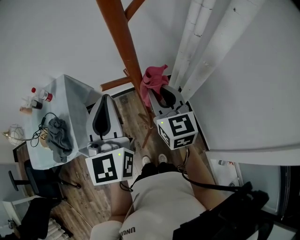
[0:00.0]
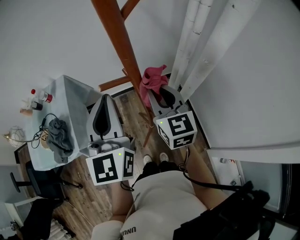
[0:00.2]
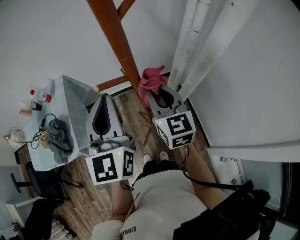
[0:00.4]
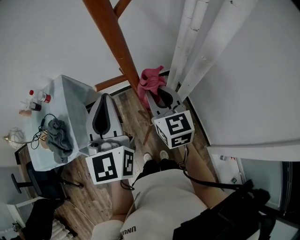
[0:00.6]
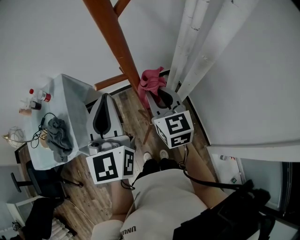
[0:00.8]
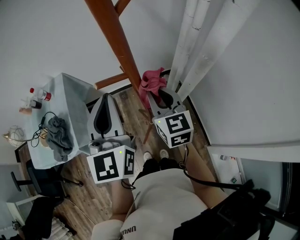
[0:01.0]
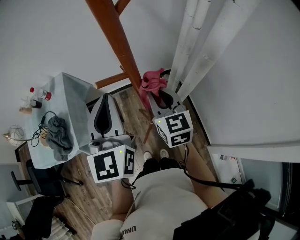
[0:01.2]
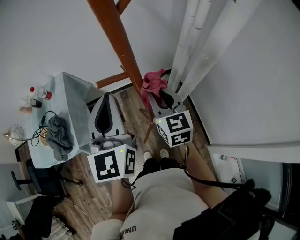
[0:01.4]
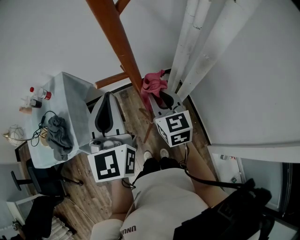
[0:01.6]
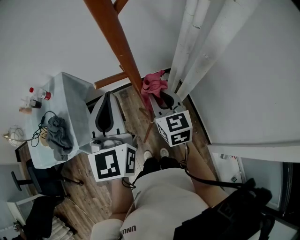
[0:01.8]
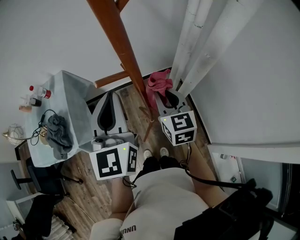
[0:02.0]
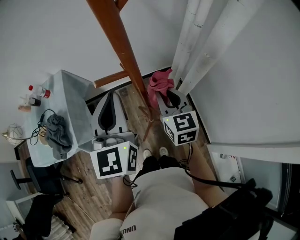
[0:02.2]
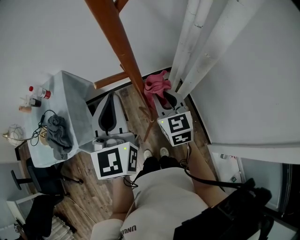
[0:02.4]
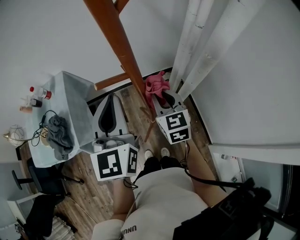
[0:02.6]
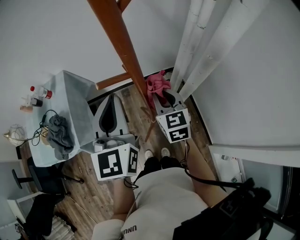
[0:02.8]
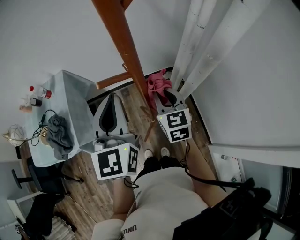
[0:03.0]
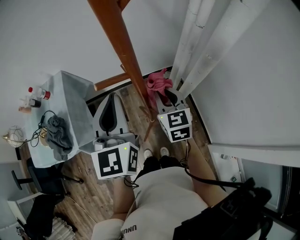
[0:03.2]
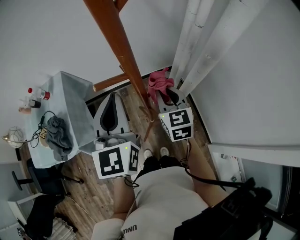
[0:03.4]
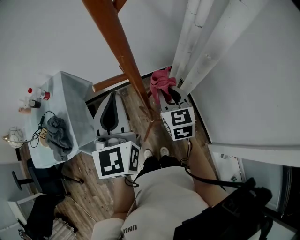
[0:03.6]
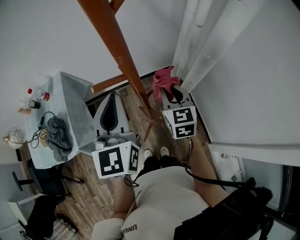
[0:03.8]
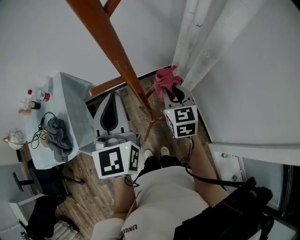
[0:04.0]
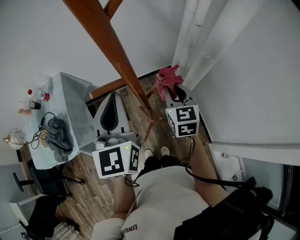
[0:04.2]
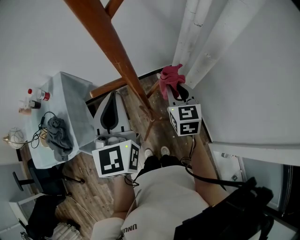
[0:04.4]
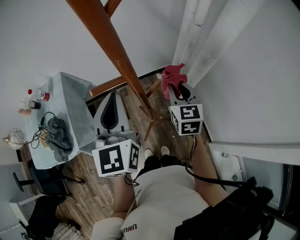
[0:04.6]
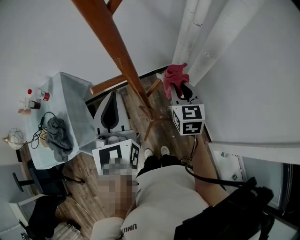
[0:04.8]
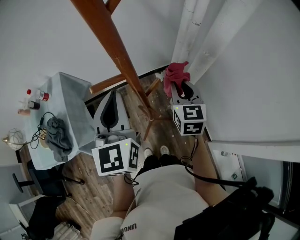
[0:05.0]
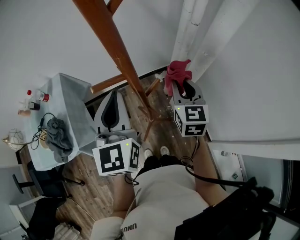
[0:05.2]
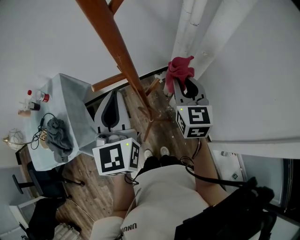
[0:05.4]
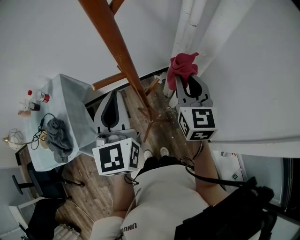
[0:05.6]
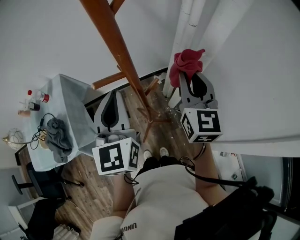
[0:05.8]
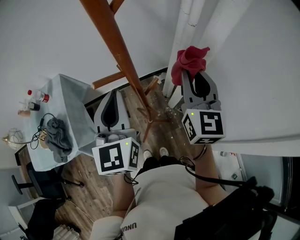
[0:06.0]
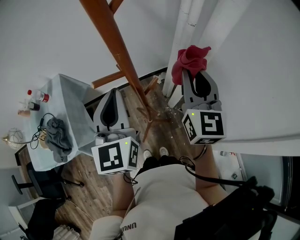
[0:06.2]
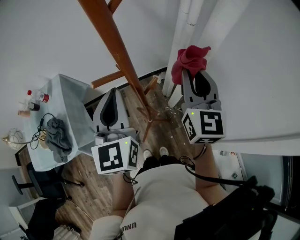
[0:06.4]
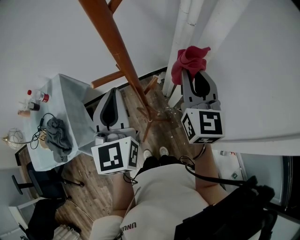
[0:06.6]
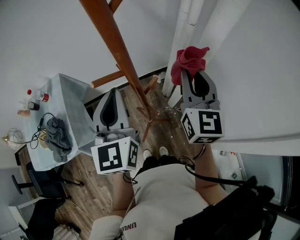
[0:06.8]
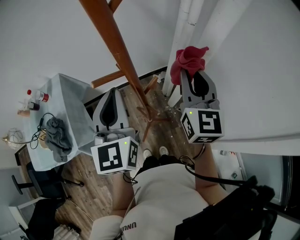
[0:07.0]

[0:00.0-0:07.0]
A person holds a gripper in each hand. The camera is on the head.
0:00.0 to 0:01.4: The right gripper goes approximately 5 cm downward.
0:01.4 to 0:02.8: The grippers make only small movements.
0:02.8 to 0:04.2: The right gripper travels to the right by approximately 5 cm.
0:04.2 to 0:05.6: The right gripper goes some 10 cm upward.
0:05.6 to 0:07.0: The grippers make only small movements.

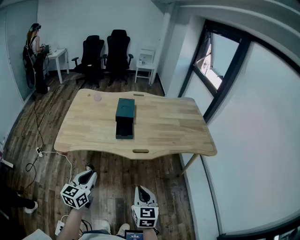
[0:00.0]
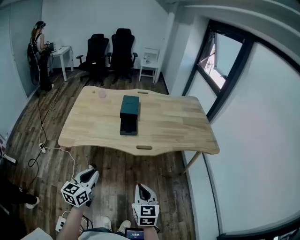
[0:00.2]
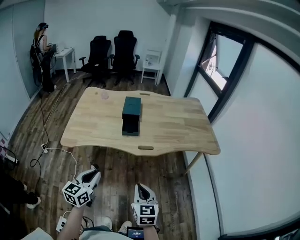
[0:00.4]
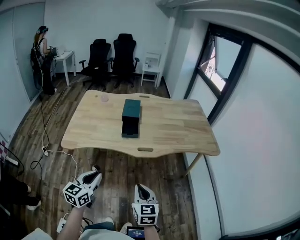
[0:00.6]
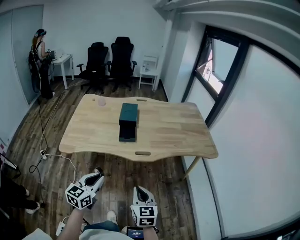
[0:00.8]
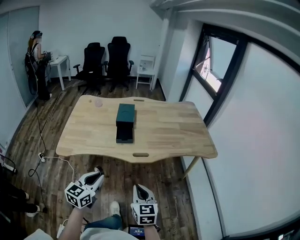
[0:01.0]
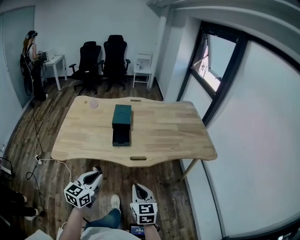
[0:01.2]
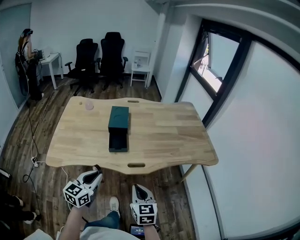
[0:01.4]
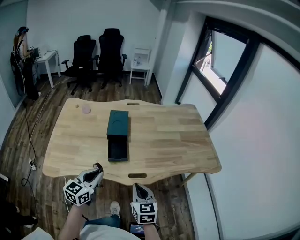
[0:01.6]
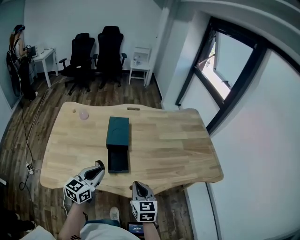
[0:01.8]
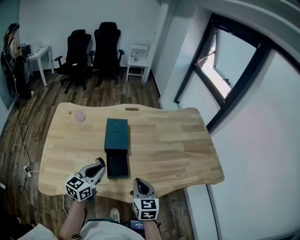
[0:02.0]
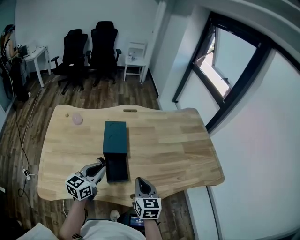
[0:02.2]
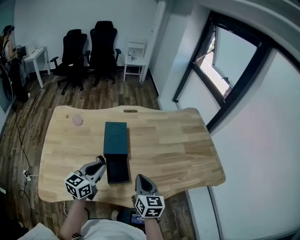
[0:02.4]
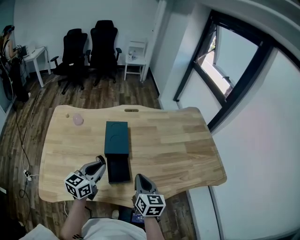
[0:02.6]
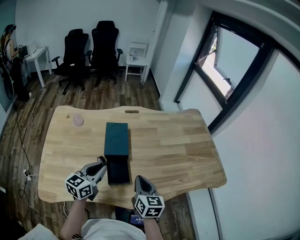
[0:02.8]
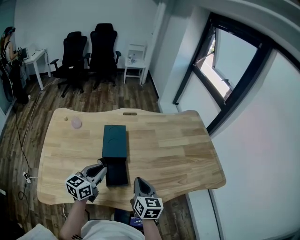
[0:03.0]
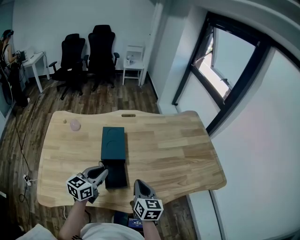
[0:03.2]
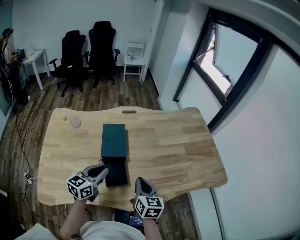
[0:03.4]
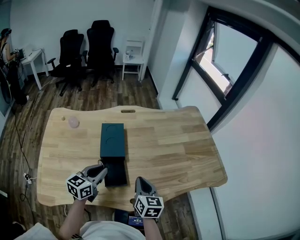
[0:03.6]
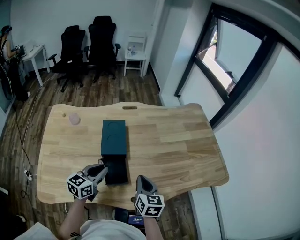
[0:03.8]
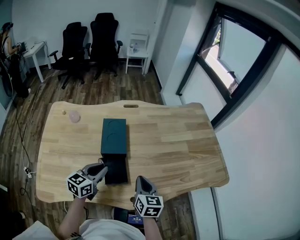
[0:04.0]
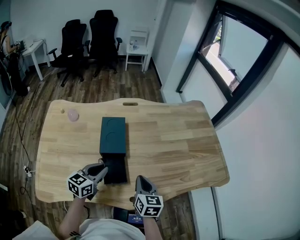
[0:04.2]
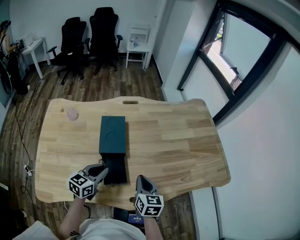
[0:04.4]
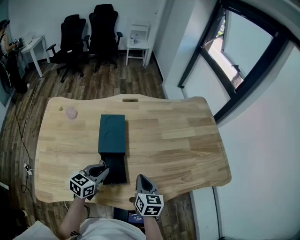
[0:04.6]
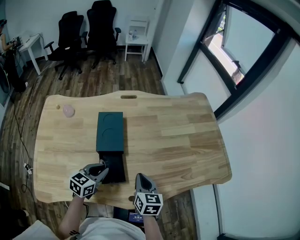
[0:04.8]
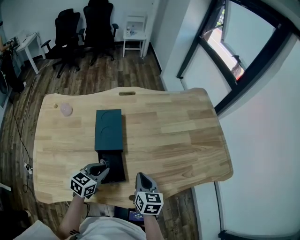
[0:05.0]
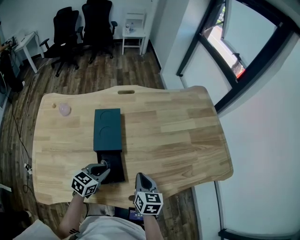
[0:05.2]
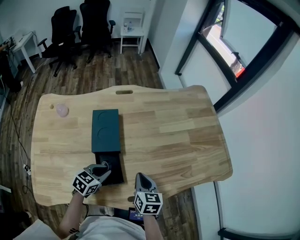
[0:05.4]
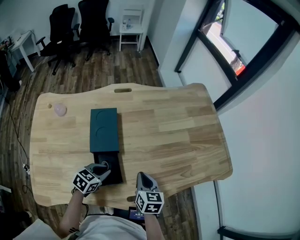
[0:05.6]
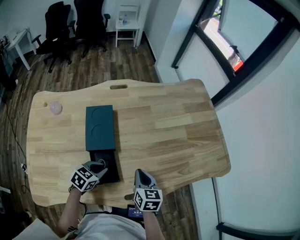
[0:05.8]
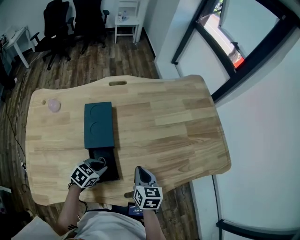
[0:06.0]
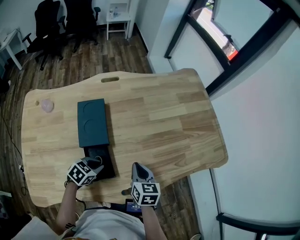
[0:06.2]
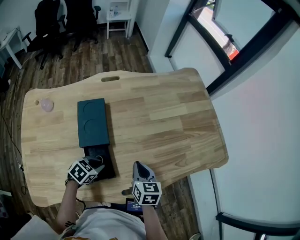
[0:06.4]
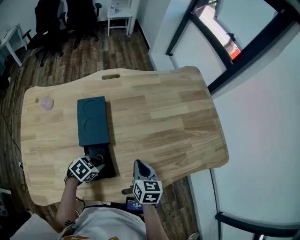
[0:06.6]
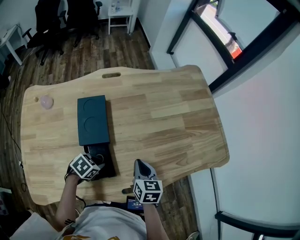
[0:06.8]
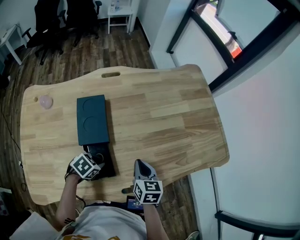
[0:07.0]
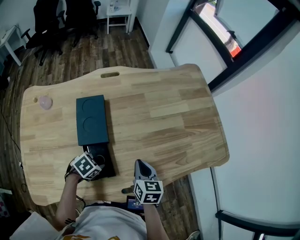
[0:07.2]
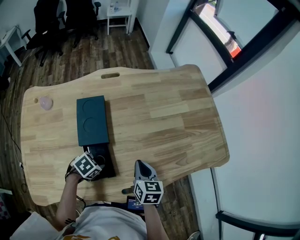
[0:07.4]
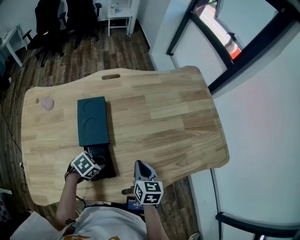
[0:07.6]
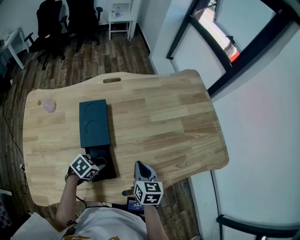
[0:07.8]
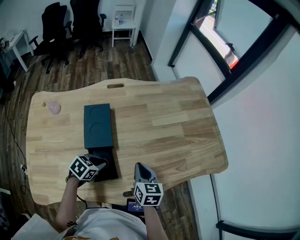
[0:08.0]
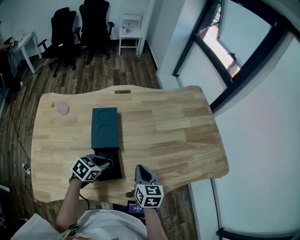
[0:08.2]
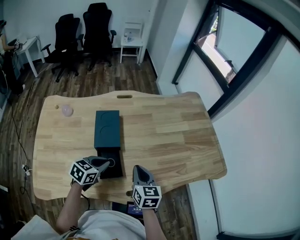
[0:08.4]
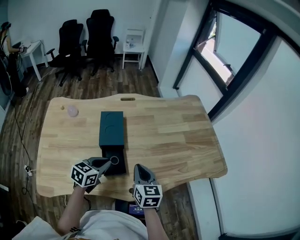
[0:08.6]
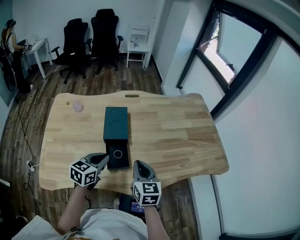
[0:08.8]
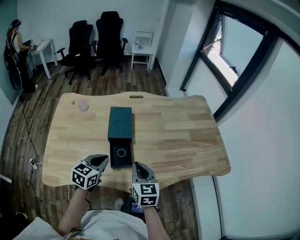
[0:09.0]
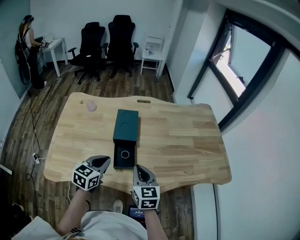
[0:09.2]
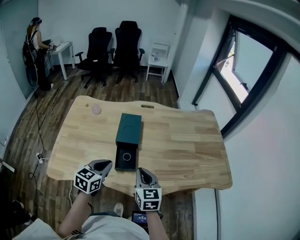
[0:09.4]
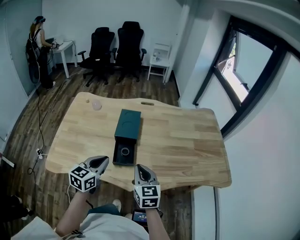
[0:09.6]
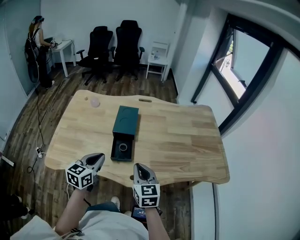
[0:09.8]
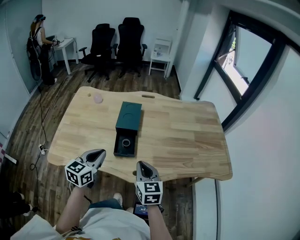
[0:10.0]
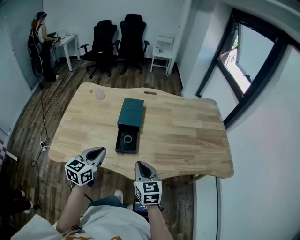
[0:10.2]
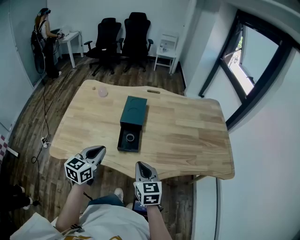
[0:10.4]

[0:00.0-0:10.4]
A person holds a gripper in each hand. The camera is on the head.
0:00.0 to 0:01.4: Both grippers travel together forward, some 10 cm.
0:01.4 to 0:03.0: Both grippers move forward, roughly 30 cm.
0:03.0 to 0:04.4: The two grippers go approximately 5 cm downward.
0:04.4 to 0:06.0: The right gripper moves downward, about 5 cm, while the left gripper goes approximately 10 cm downward, and rotates about 40 degrees.
0:06.0 to 0:07.4: The left gripper turns by approximately 20 degrees.
0:07.4 to 0:09.0: The left gripper heads upward, covering roughly 20 cm, and tilts its fingers some 40 degrees upward. Meanwhile the right gripper ends up roughly 20 cm from where it was, and changes its angle by approximately 20 degrees.
0:09.0 to 0:10.4: Both grippers travel together backward, approximately 10 cm.

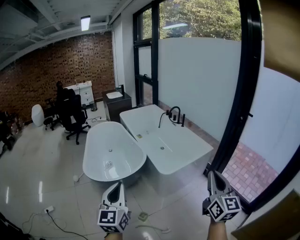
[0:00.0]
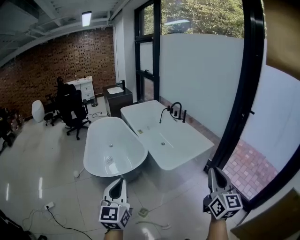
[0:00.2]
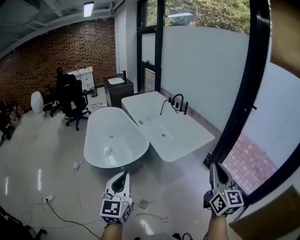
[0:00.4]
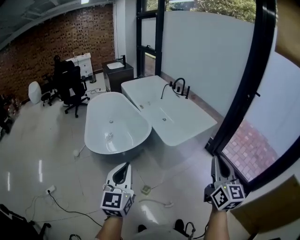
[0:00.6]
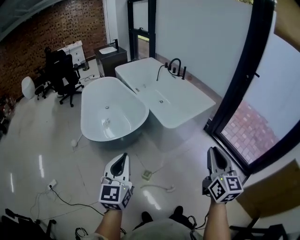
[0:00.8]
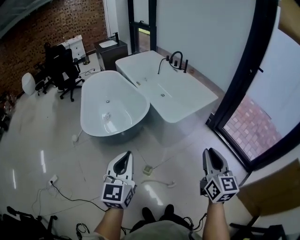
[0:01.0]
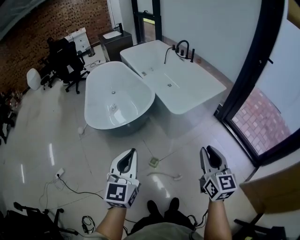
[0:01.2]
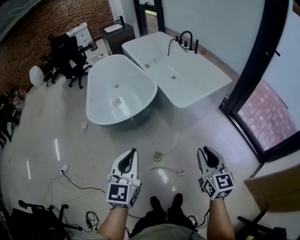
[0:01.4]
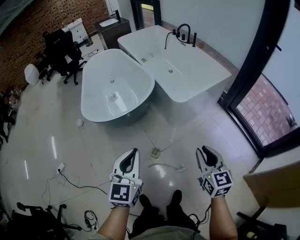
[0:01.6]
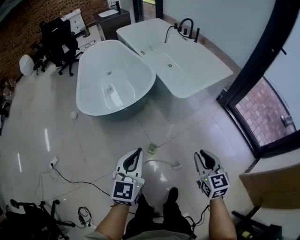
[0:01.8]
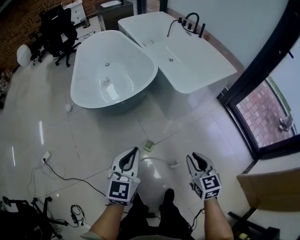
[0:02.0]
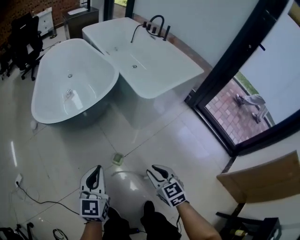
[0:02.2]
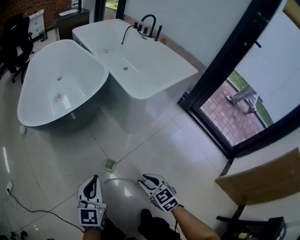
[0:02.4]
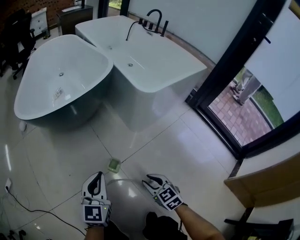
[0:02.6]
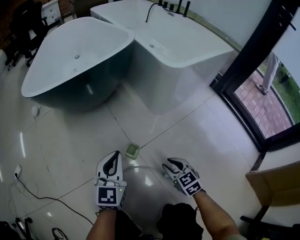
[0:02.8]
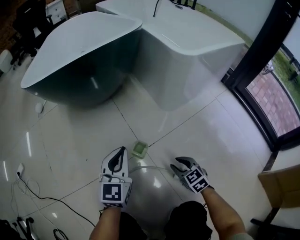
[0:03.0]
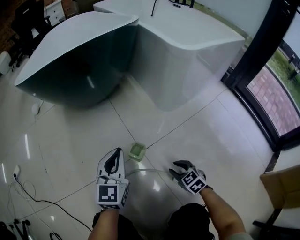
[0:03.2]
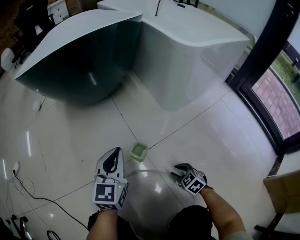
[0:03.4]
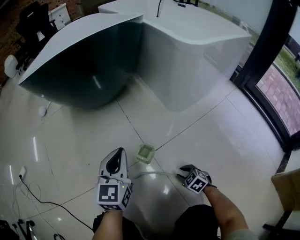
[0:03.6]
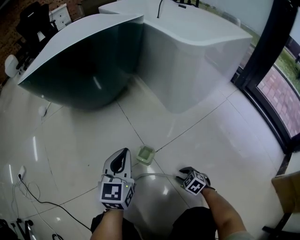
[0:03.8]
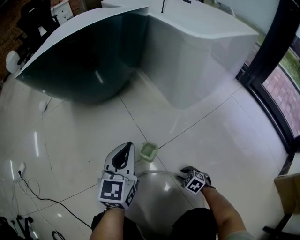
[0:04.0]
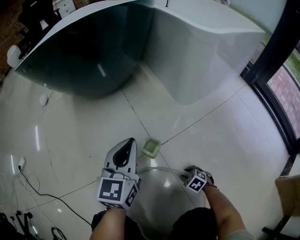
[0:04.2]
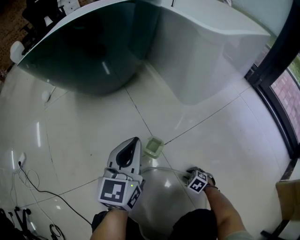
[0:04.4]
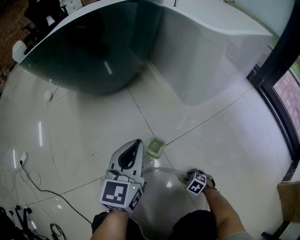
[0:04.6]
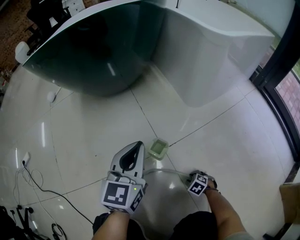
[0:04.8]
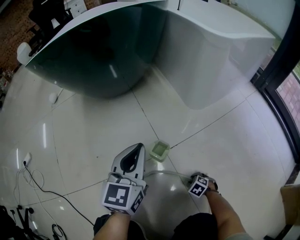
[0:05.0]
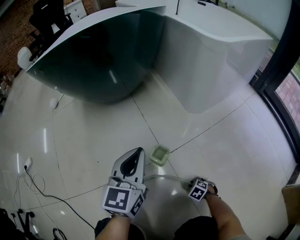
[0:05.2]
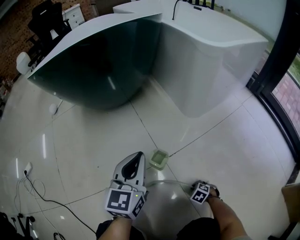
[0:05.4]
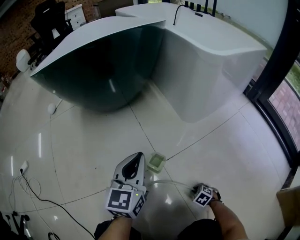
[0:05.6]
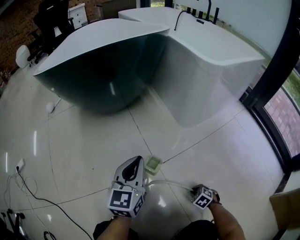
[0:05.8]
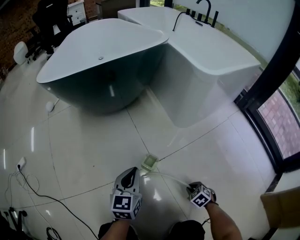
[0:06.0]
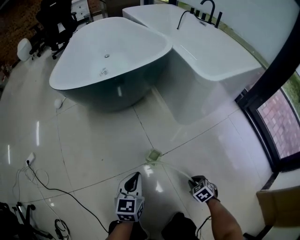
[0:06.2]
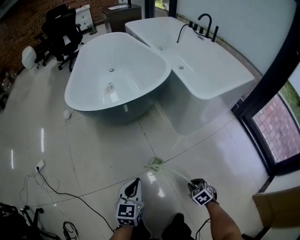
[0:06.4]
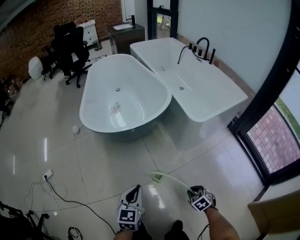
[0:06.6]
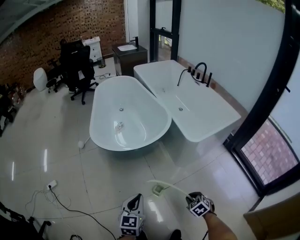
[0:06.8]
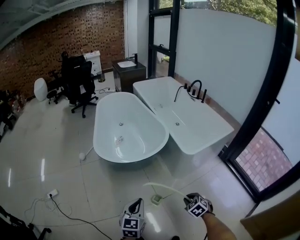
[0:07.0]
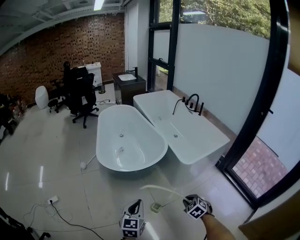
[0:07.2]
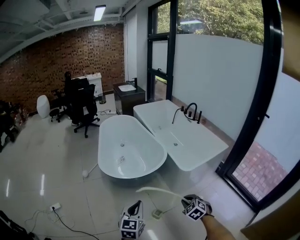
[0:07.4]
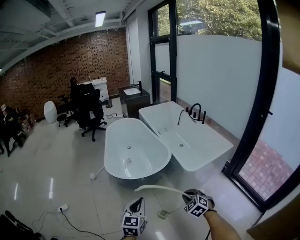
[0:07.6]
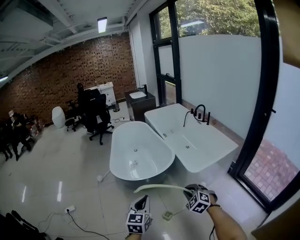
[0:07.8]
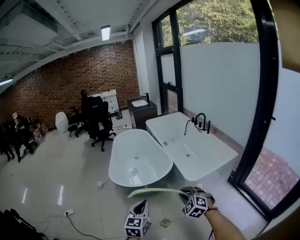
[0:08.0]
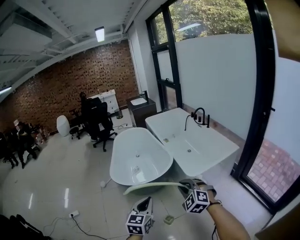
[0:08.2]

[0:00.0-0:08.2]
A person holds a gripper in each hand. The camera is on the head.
0:00.0 to 0:01.6: Both grippers move downward, about 30 cm. The right gripper rotates some 30 degrees.
0:01.6 to 0:03.2: The grippers both shift downward by about 80 cm. The right gripper points its fingers about 30 degrees further downward.
0:03.2 to 0:05.0: The left gripper moves roughly 5 cm; the right gripper shifts approximately 25 cm downward, and points its fingers about 30 degrees further downward.
0:05.0 to 0:06.6: The right gripper goes about 70 cm upward, and changes its angle by approximately 20 degrees. Meanwhile the left gripper is displaced upward by about 50 cm.
0:06.6 to 0:08.2: The right gripper moves upward, some 60 cm, and tips its fingers upward by some 40 degrees, while the left gripper travels upward and backward by roughly 50 cm.
